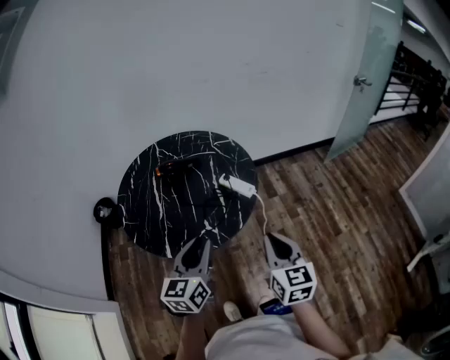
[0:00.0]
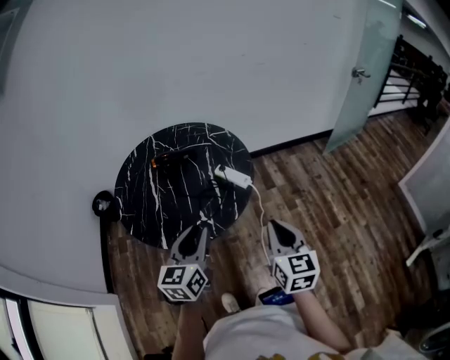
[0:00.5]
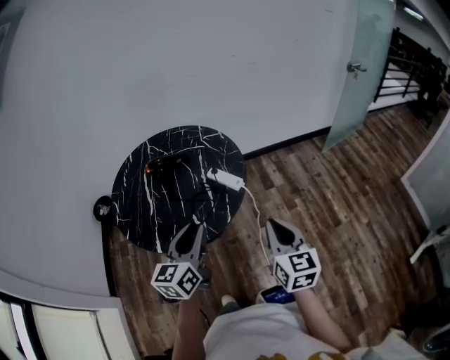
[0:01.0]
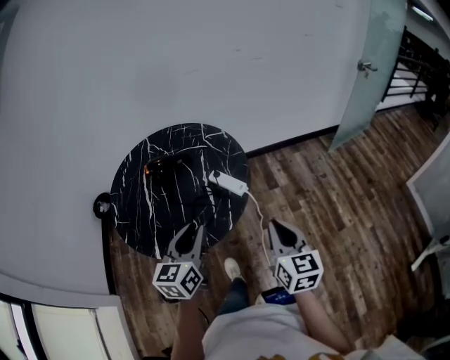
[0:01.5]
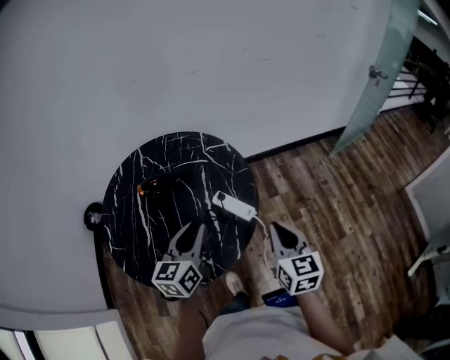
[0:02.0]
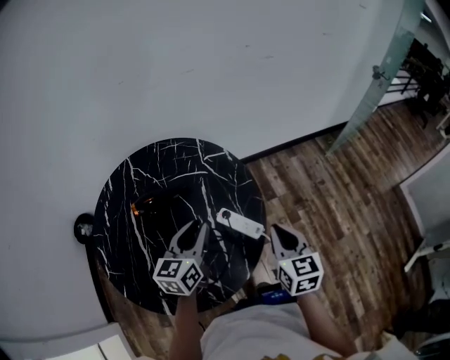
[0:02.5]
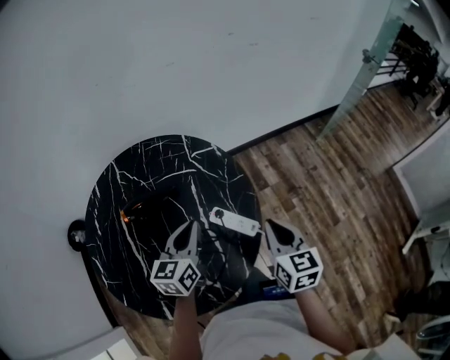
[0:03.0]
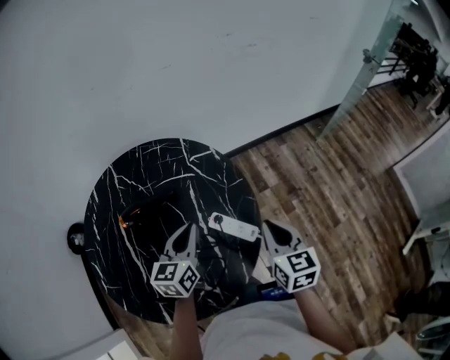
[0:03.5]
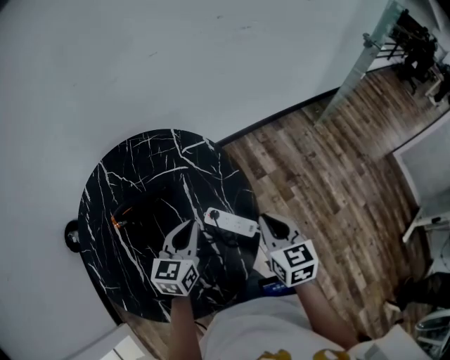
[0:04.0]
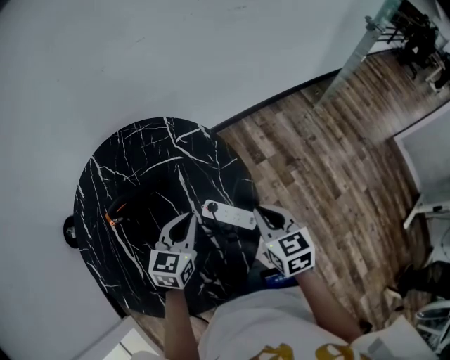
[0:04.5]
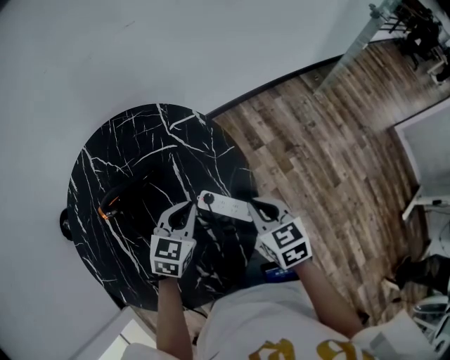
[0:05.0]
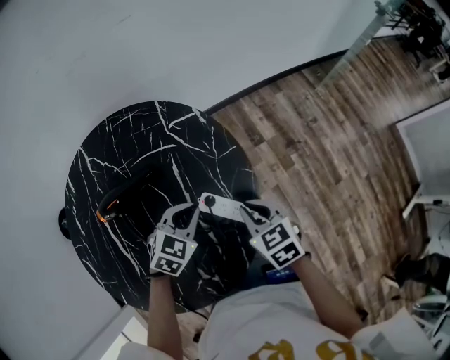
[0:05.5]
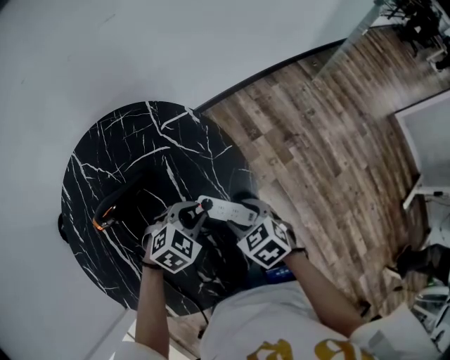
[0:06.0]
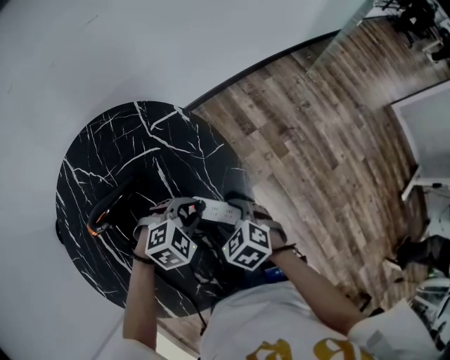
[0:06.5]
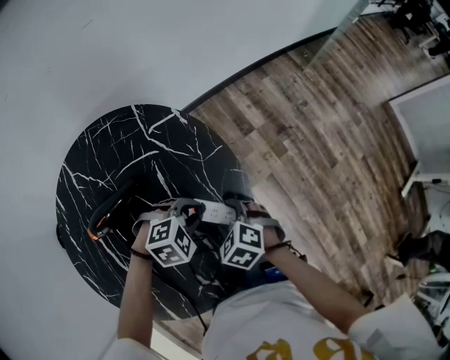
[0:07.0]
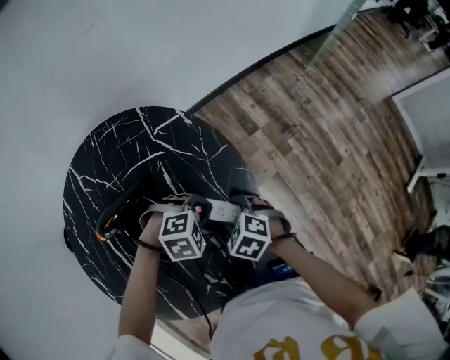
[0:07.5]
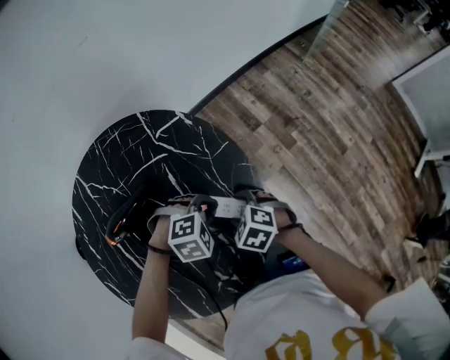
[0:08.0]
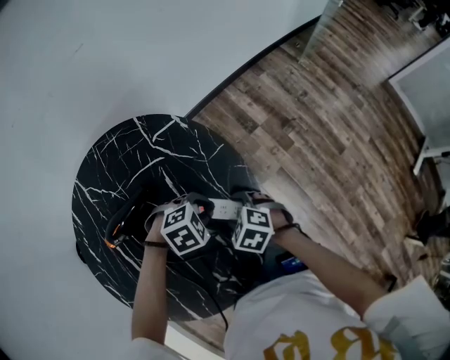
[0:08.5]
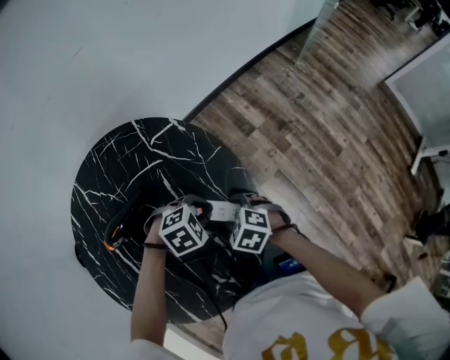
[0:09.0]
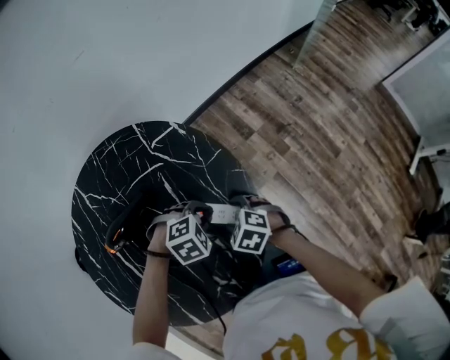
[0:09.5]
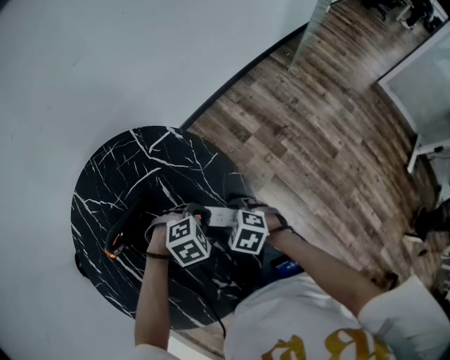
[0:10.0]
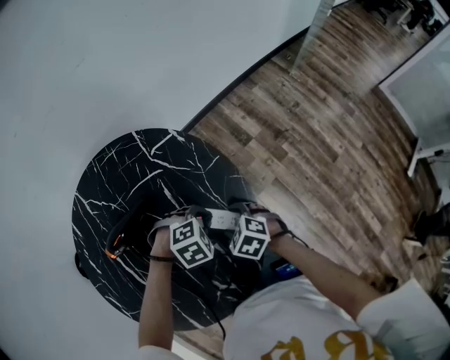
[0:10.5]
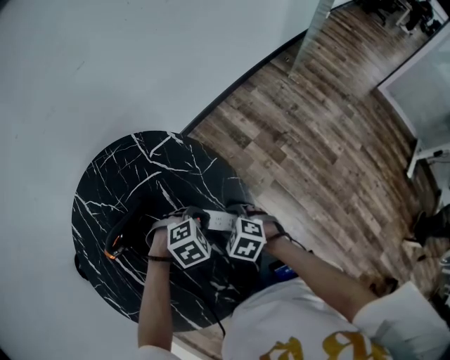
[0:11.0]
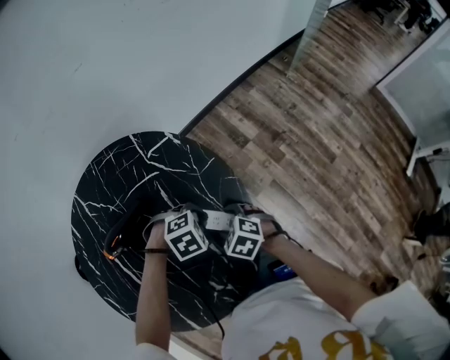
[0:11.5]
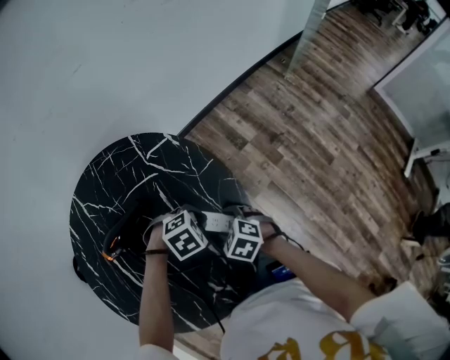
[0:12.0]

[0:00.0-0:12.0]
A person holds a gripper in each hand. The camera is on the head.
0:00.0 to 0:02.0: Both grippers travel together forward, some 20 cm.
0:02.0 to 0:04.0: The two grippers go roughly 15 cm forward and downward. The left gripper closes its fingers.
0:04.0 to 0:06.0: The right gripper heads downward and to the left, covering some 15 cm, changes its angle by roughly 40 degrees, and opens, while the left gripper shifts approximately 10 cm downward, and tilts its fingers roughly 30 degrees downward.
0:06.0 to 0:08.0: The right gripper moves approximately 5 cm. The left gripper swivels roughly 30 degrees.
0:08.0 to 0:12.0: The grippers move only a little.

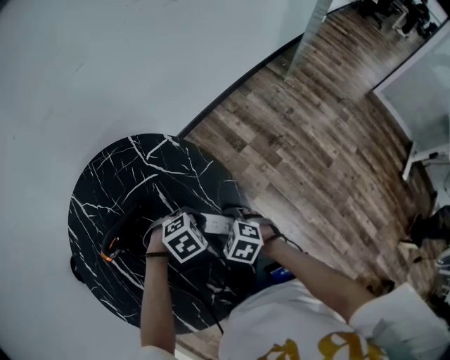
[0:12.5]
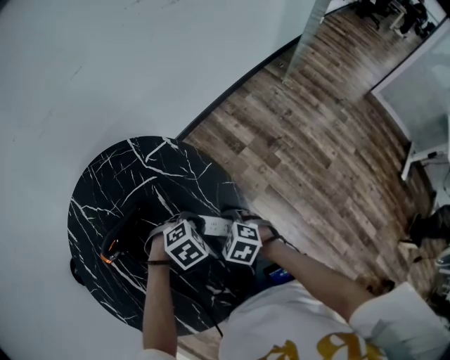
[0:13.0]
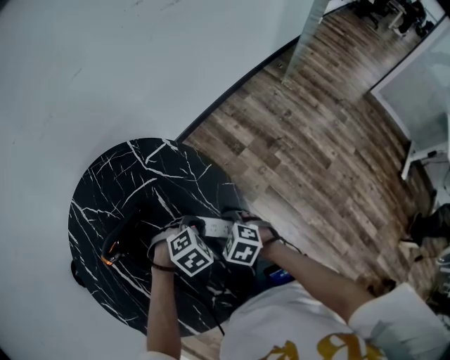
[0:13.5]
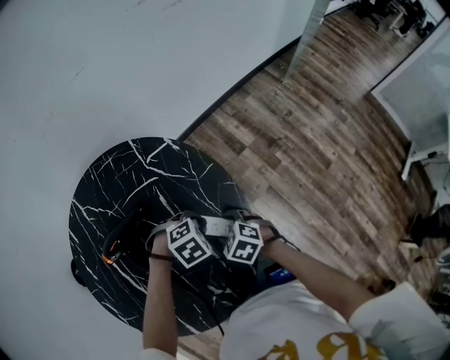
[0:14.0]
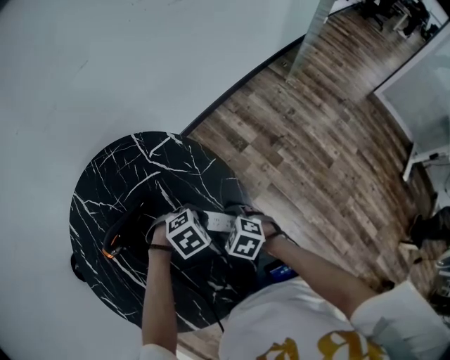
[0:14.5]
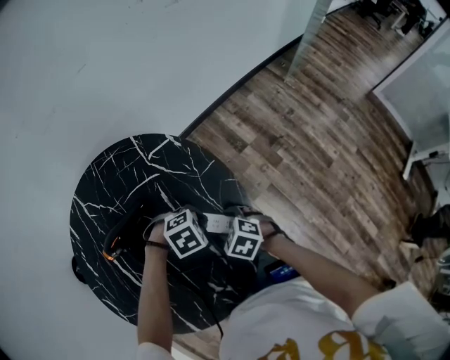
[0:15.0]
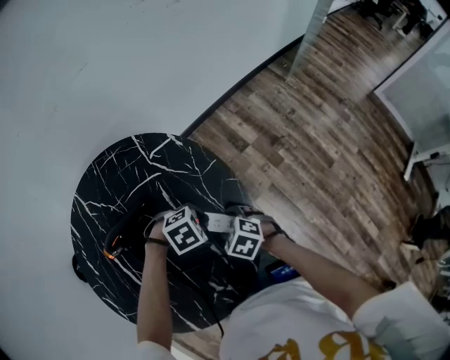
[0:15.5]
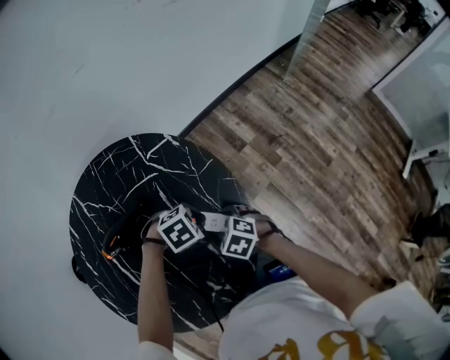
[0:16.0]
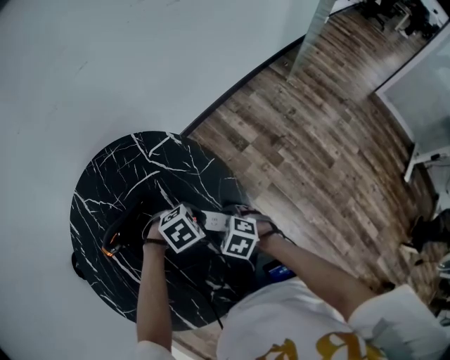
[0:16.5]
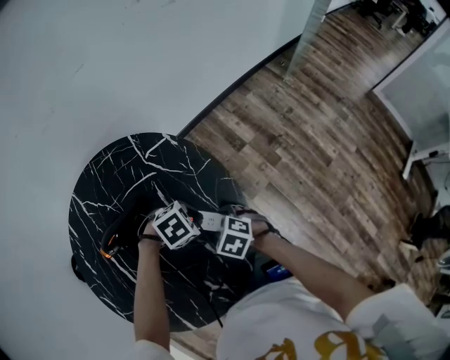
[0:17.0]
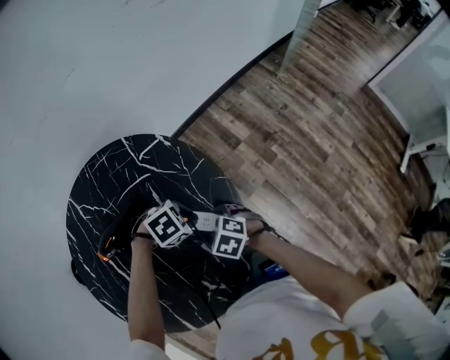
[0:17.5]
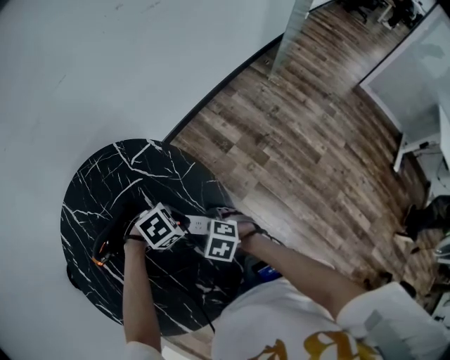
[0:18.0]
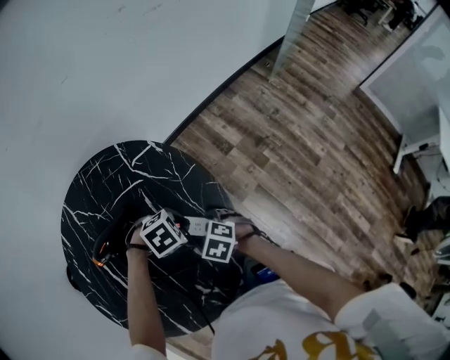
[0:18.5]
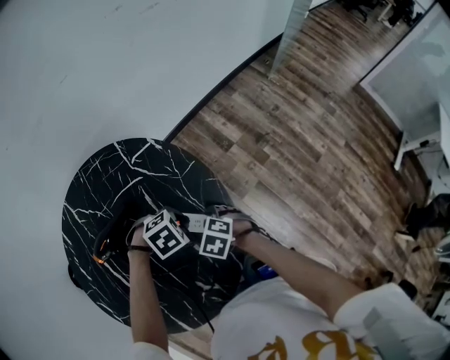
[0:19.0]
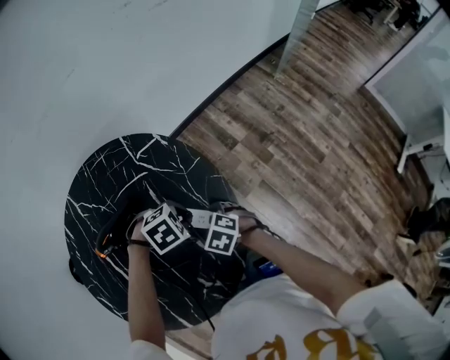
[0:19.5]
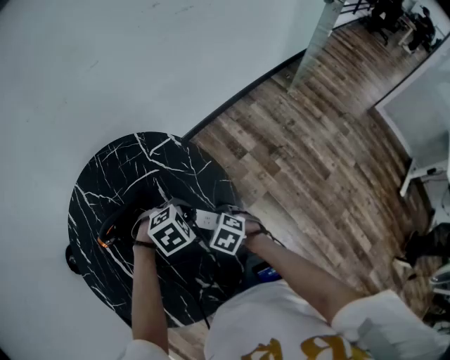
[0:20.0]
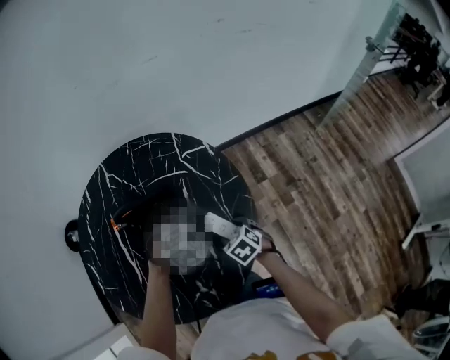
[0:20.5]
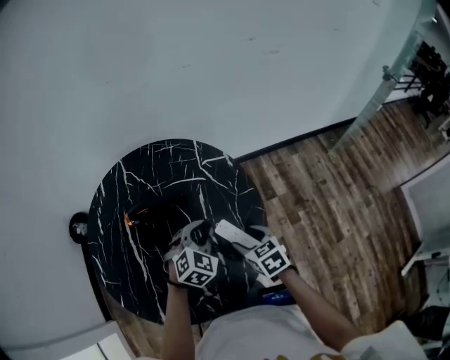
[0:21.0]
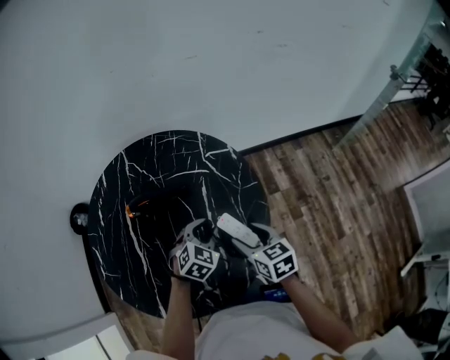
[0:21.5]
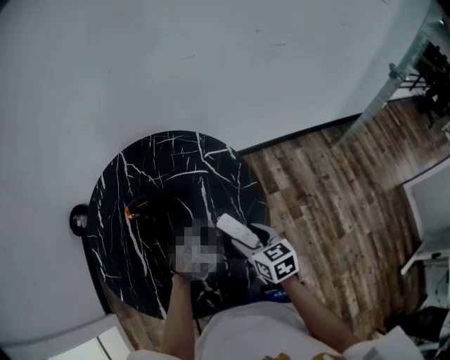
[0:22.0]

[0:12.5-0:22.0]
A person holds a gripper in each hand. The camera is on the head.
0:12.5 to 0:20.0: The grippers make only small movements.
0:20.0 to 0:22.0: The left gripper changes place by some 10 cm, and turns by approximately 50 degrees; the right gripper travels upward by some 10 cm, and changes its angle by about 30 degrees.

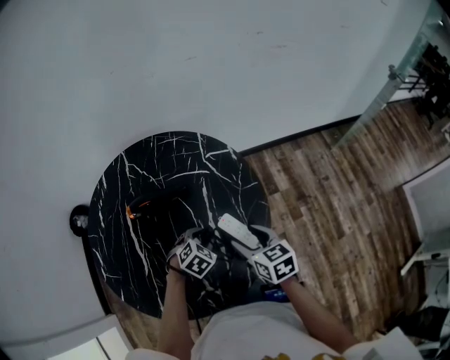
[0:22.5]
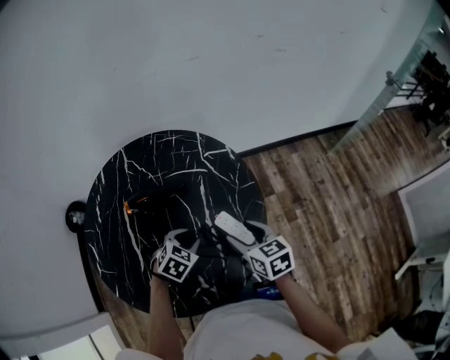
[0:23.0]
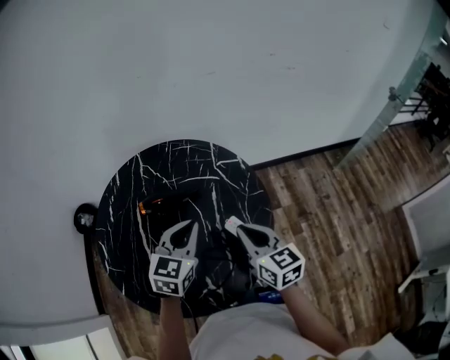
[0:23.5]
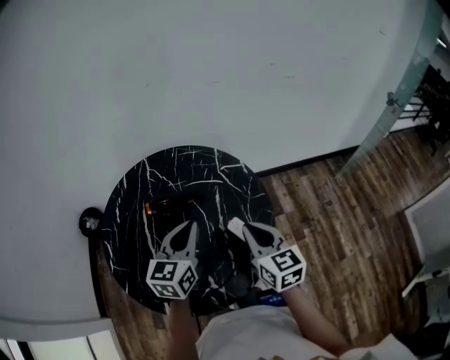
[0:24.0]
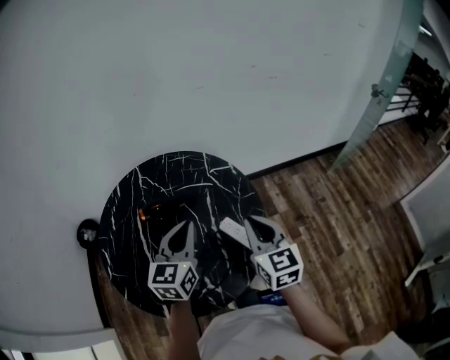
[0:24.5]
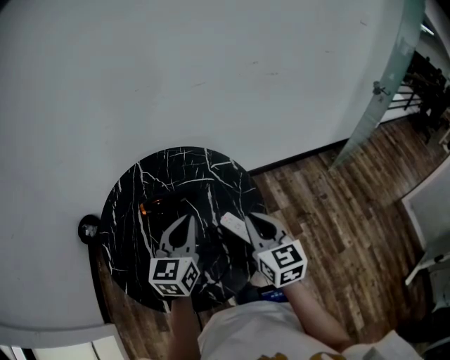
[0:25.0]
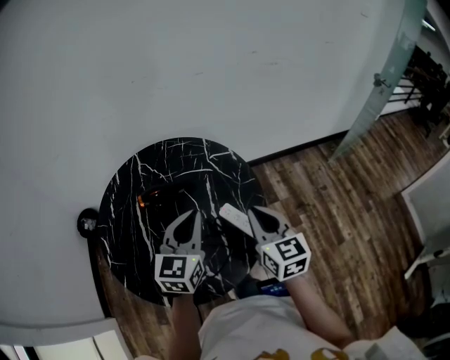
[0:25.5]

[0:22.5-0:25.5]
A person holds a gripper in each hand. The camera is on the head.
0:22.5 to 0:24.0: The right gripper travels upward by about 15 cm, changes its angle by about 20 degrees, and closes. The left gripper is displaced upward by approximately 25 cm, angles its fingers upward, by roughly 50 degrees, and closes.
0:24.0 to 0:25.5: The right gripper moves about 5 cm. The left gripper changes place by approximately 5 cm.

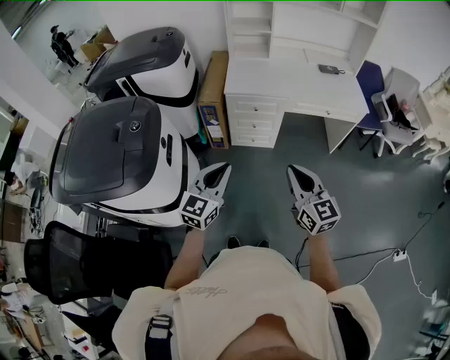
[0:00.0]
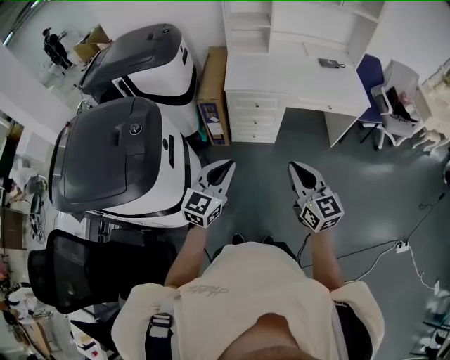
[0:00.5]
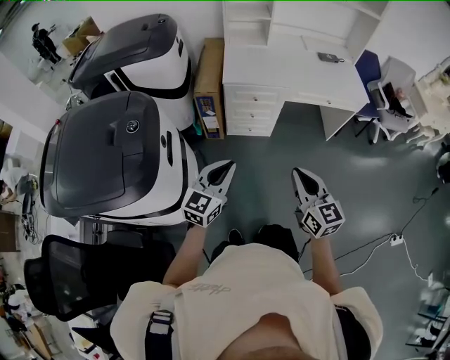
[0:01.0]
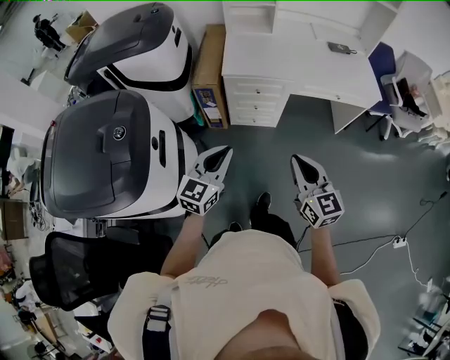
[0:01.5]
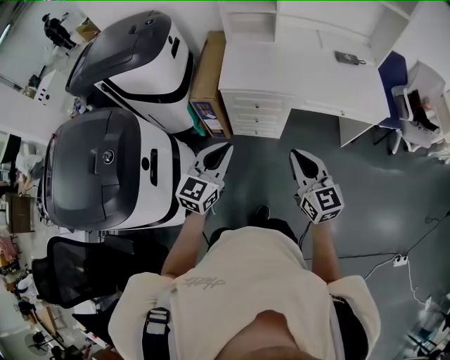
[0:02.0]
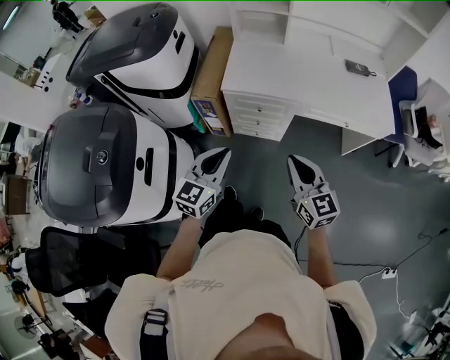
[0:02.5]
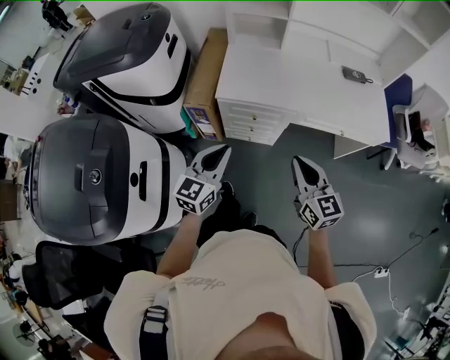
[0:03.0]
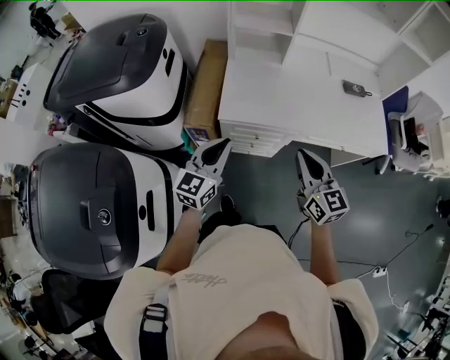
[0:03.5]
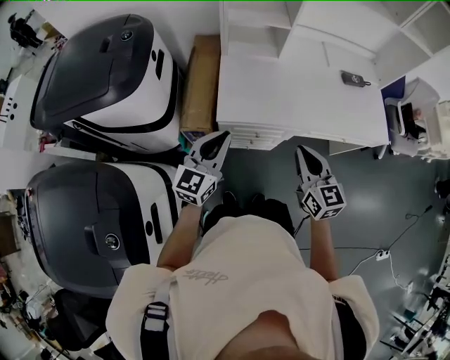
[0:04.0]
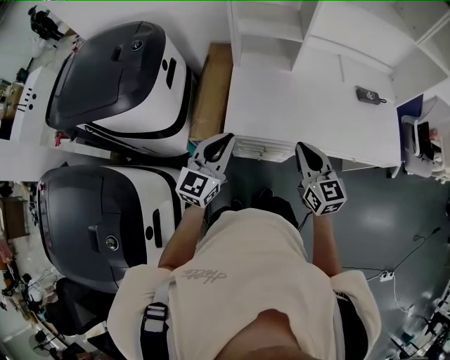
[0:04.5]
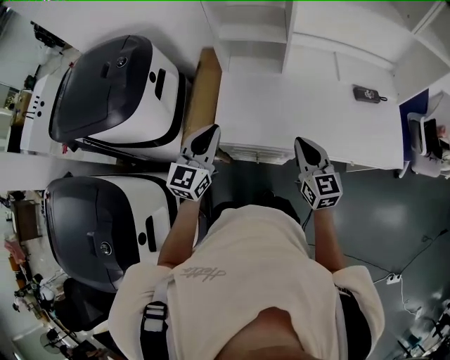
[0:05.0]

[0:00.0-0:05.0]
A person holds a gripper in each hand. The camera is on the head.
0:00.0 to 0:02.5: The grippers both shift forward by roughly 30 cm.
0:02.5 to 0:05.0: The grippers both shift forward by some 35 cm.
